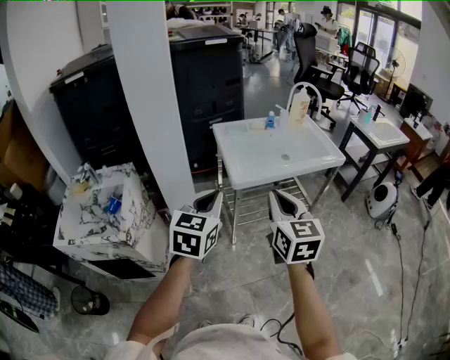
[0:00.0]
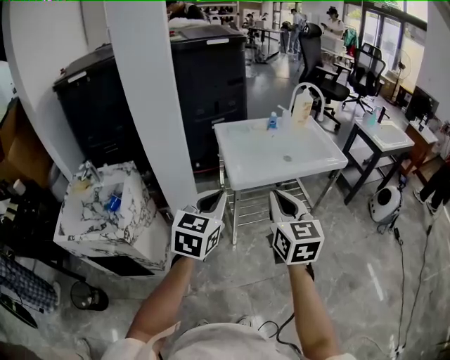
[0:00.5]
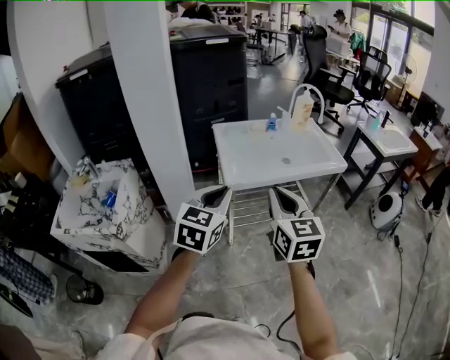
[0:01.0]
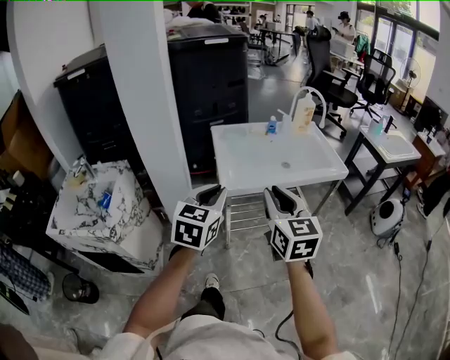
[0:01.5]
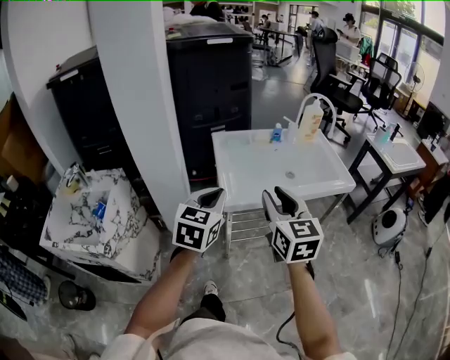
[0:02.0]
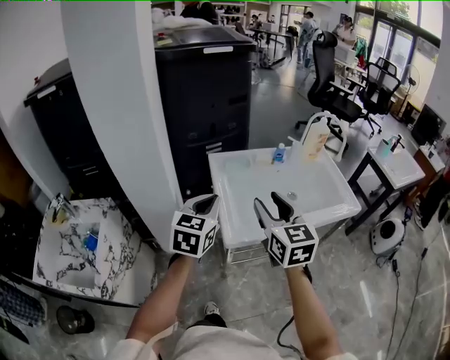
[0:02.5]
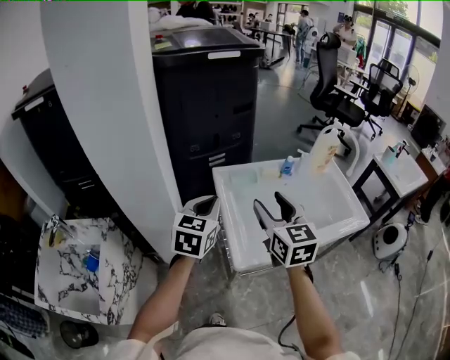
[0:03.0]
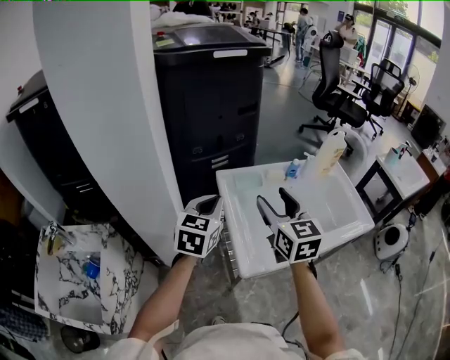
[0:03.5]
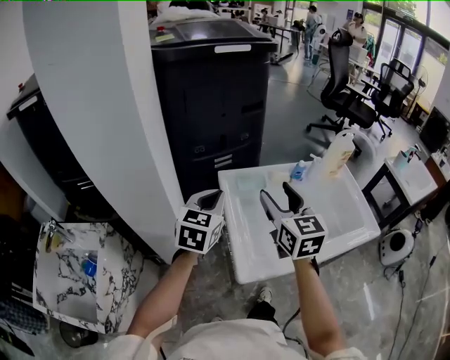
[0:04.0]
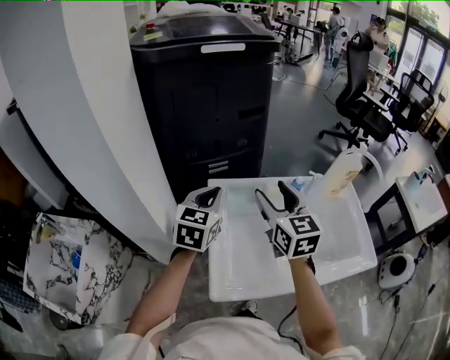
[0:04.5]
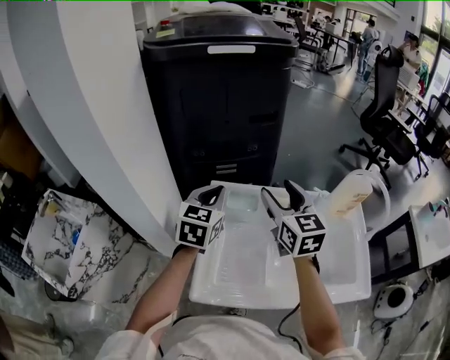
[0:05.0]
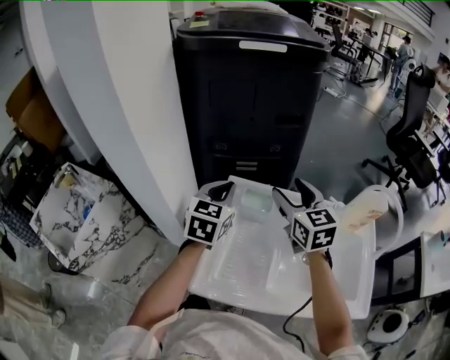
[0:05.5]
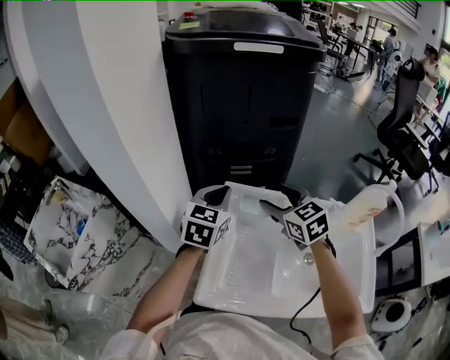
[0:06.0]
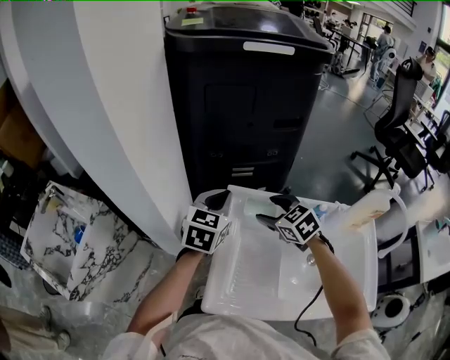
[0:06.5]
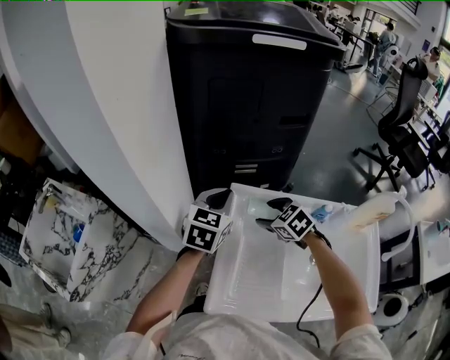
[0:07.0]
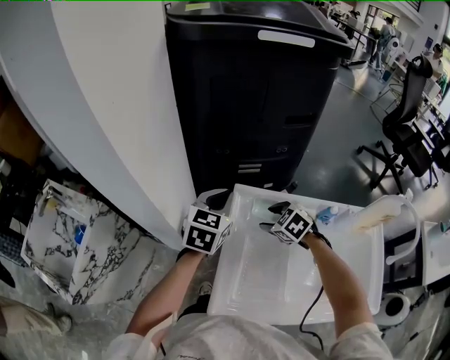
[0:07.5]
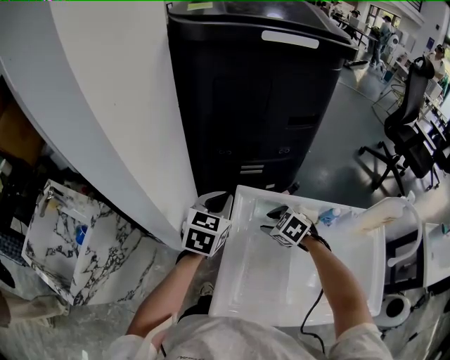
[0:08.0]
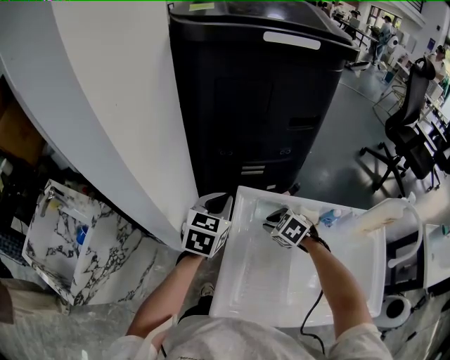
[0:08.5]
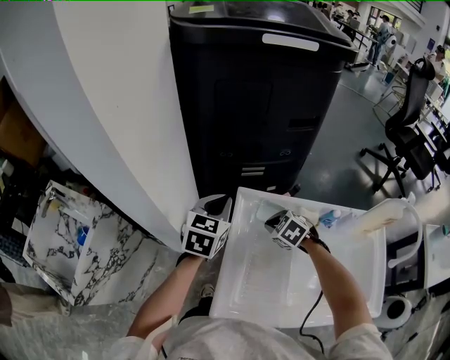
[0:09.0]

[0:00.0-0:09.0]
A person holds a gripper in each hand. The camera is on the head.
0:00.0 to 0:02.0: The right gripper goes roughly 15 cm forward, and opens its fingers; the left gripper moves forward and to the right, some 15 cm.
0:02.0 to 0:04.5: The grippers both shift forward by about 40 cm. The right gripper opens its fingers.
0:04.5 to 0:07.0: The right gripper heads downward, covering about 20 cm, and tips its fingers downward by some 40 degrees. The left gripper moves about 10 cm.
0:07.0 to 0:09.0: The right gripper heads downward, covering about 5 cm, and closes.

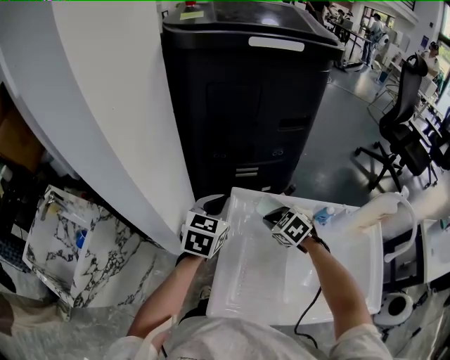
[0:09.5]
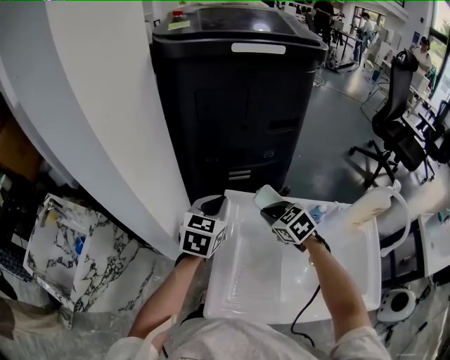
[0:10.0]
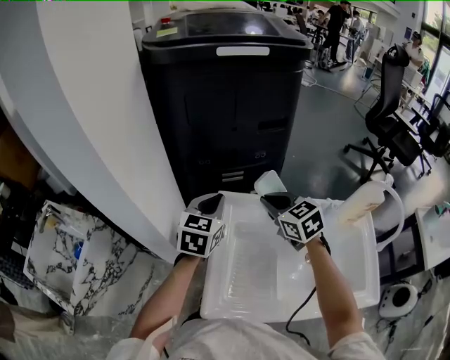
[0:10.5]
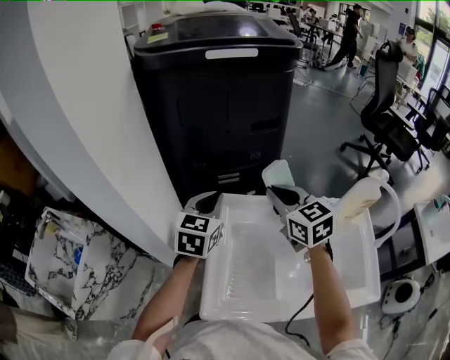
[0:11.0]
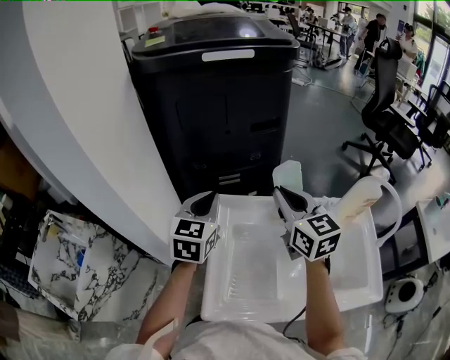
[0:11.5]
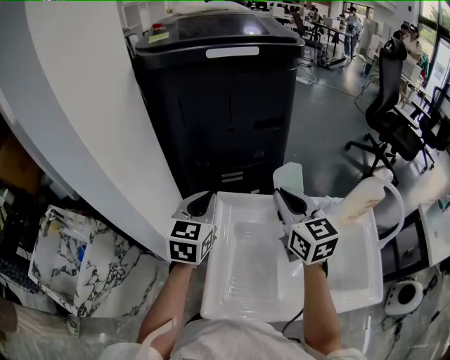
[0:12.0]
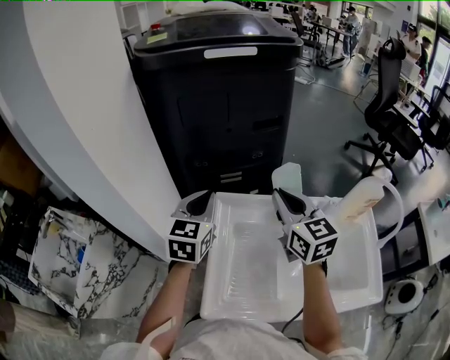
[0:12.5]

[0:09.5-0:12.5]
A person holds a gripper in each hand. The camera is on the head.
0:09.5 to 0:11.0: The left gripper shifts about 5 cm upward. The right gripper goes about 20 cm upward, and angles its fingers upward, by some 40 degrees.
0:11.0 to 0:12.5: The grippers stay close to where they were, moving slightly.

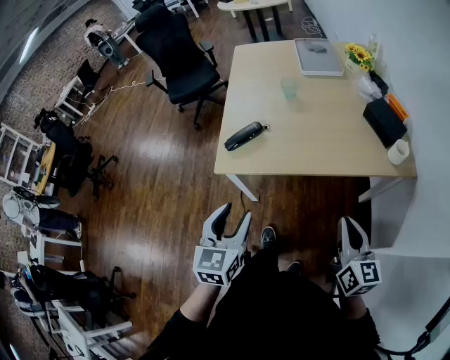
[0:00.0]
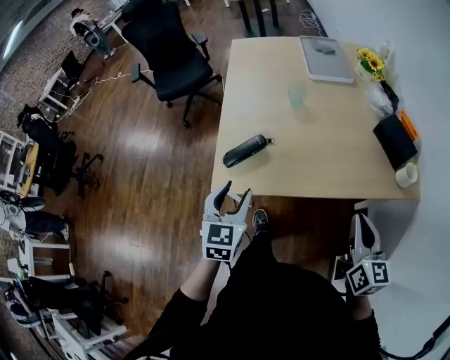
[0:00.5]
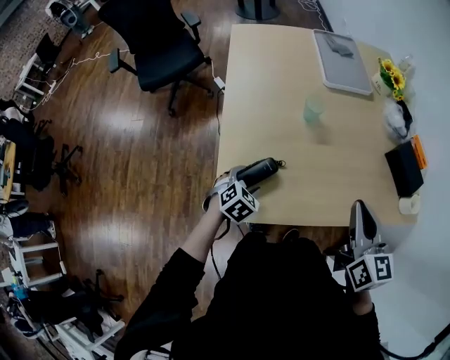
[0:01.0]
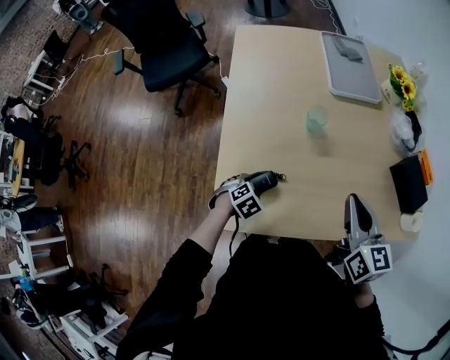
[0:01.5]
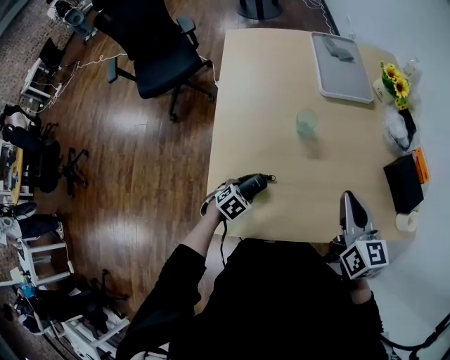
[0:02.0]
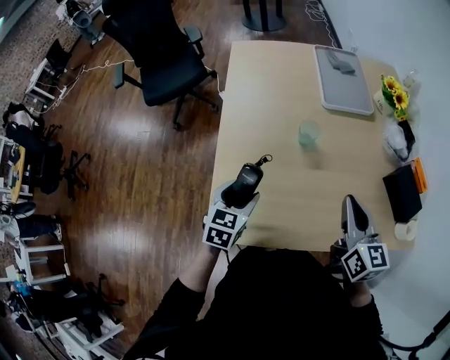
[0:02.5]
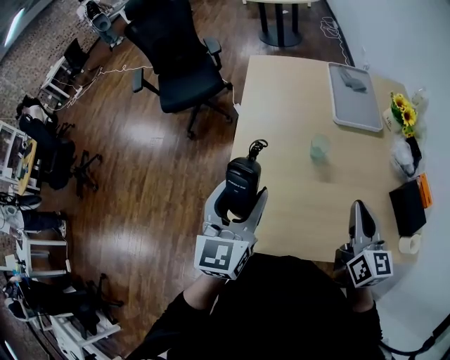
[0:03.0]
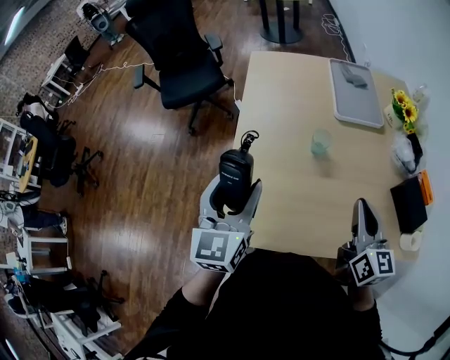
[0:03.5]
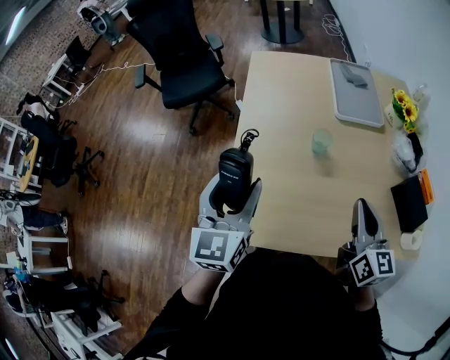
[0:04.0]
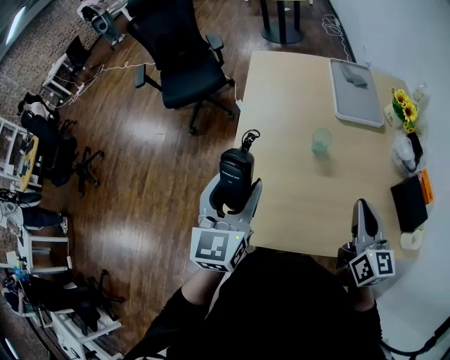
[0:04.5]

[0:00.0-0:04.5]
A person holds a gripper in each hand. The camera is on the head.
0:00.0 to 0:02.0: The right gripper shifts some 40 cm forward and to the left, while the left gripper shifts some 50 cm forward and downward, and tips its fingers downward by some 50 degrees.
0:02.0 to 0:04.5: The left gripper shifts roughly 35 cm upward, and points its fingers roughly 60 degrees further upward.

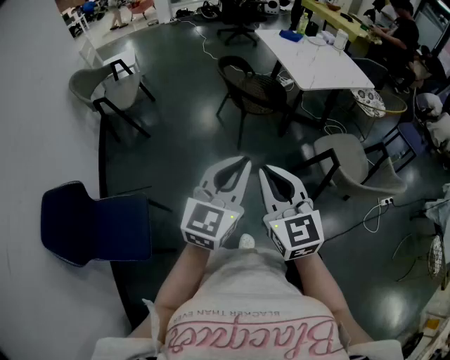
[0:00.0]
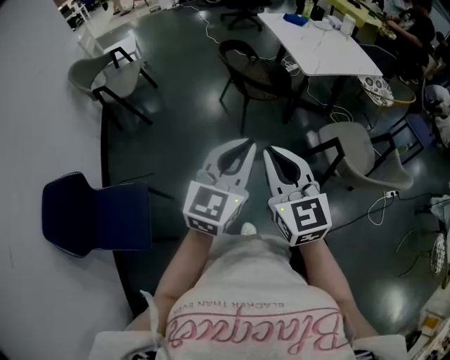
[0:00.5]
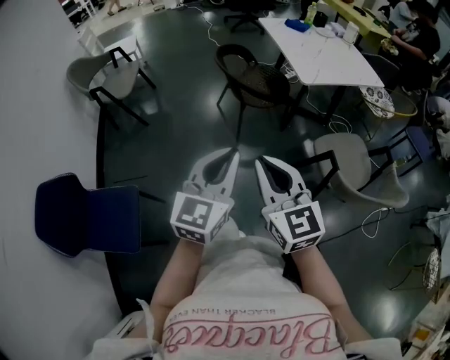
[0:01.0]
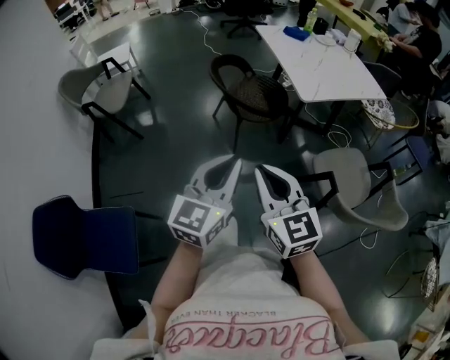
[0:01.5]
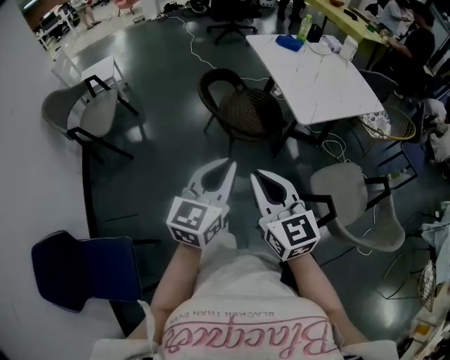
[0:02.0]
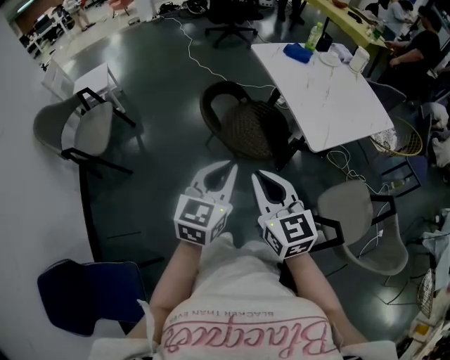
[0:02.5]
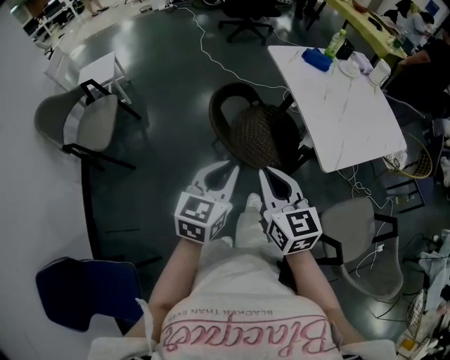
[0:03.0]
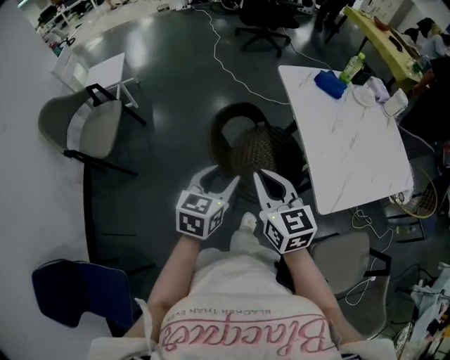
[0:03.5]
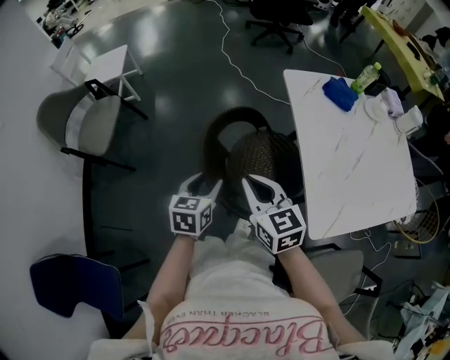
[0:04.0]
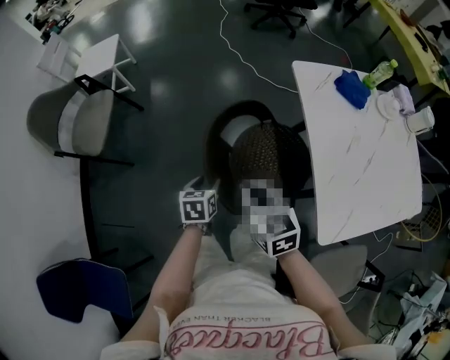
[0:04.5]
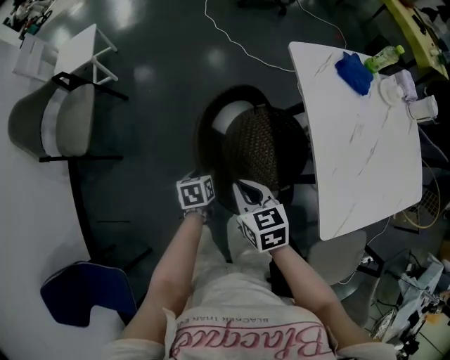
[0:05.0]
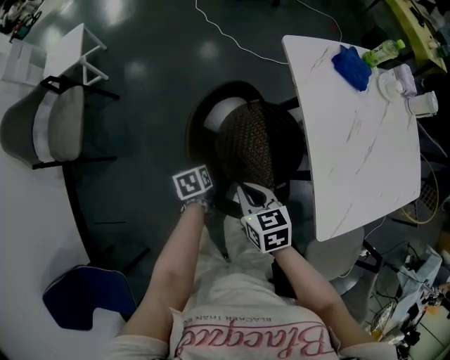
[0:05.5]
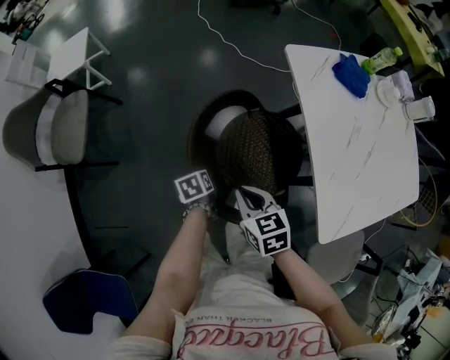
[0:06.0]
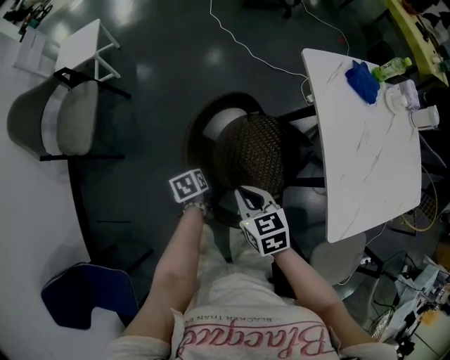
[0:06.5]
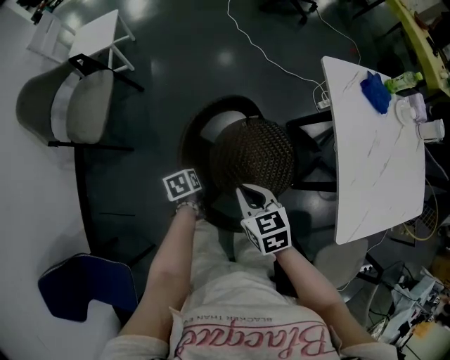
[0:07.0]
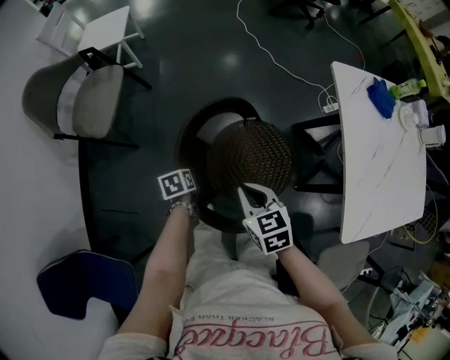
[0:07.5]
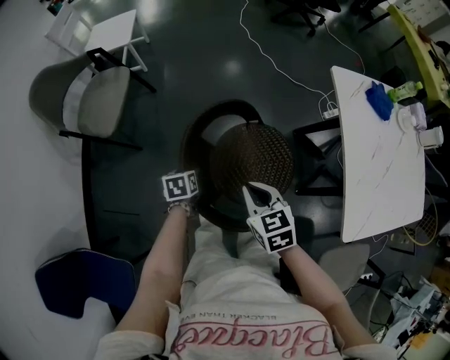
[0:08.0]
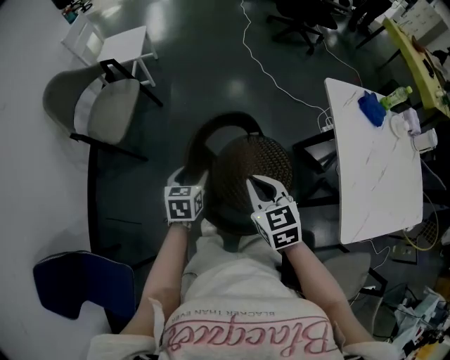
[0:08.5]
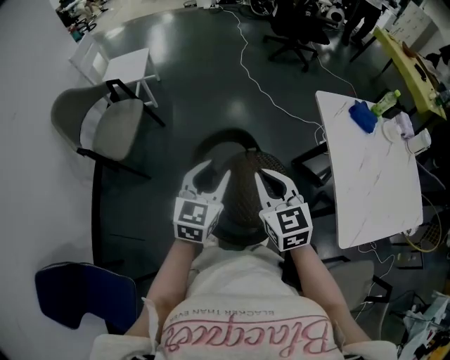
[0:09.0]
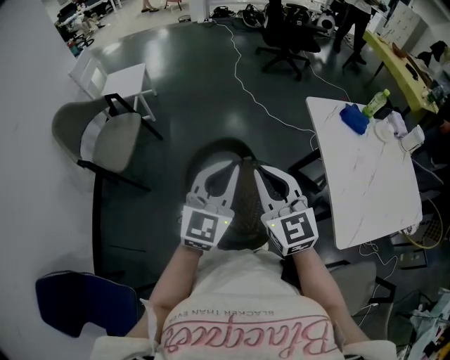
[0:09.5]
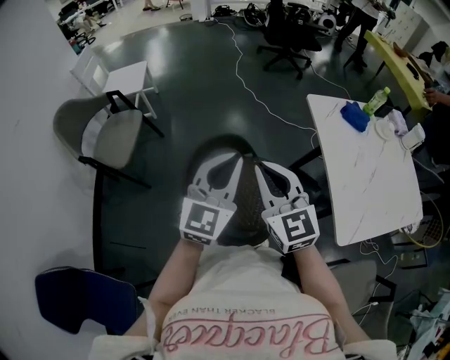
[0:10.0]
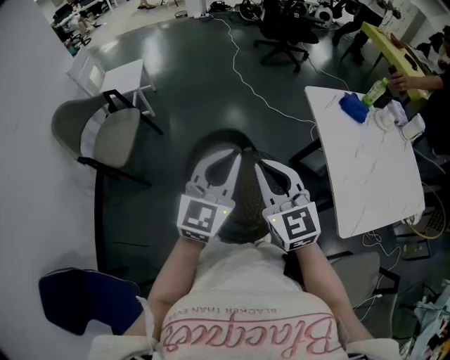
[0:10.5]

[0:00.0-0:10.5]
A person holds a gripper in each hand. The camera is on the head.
0:00.0 to 0:02.0: The grippers both shift forward by roughly 30 cm.
0:02.0 to 0:04.0: The two grippers travel together, forward, roughly 50 cm. The right gripper swivels roughly 20 degrees; the left gripper moves downward, approximately 20 cm, tilts its fingers some 30 degrees downward, and opens its fingers.
0:04.0 to 0:06.5: The right gripper shifts approximately 15 cm downward and to the left, and turns by some 20 degrees. Meanwhile the left gripper goes roughly 25 cm downward and to the left, tips its fingers downward by some 30 degrees, and closes.
0:06.5 to 0:08.5: The left gripper heads upward and to the left, covering some 20 cm, swivels roughly 40 degrees, and opens its fingers, while the right gripper is displaced upward and to the left by roughly 15 cm.
0:08.5 to 0:10.5: The left gripper shifts some 30 cm upward and to the right, angles its fingers upward, by about 40 degrees, and closes. Meanwhile the right gripper travels upward by about 15 cm, and rotates about 30 degrees.
